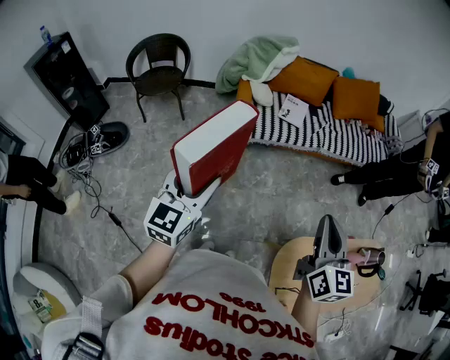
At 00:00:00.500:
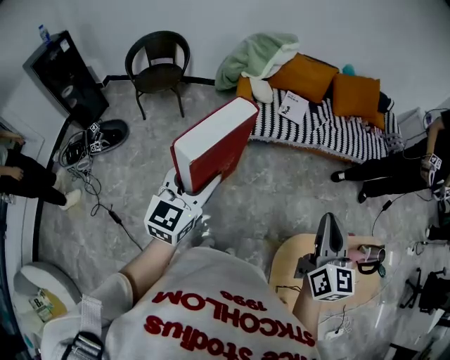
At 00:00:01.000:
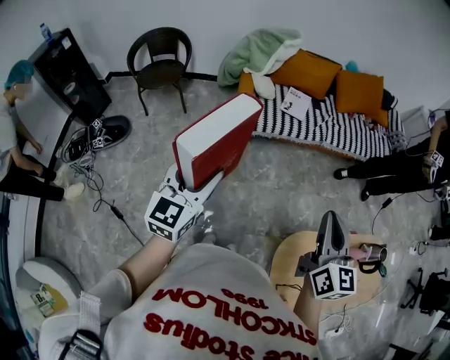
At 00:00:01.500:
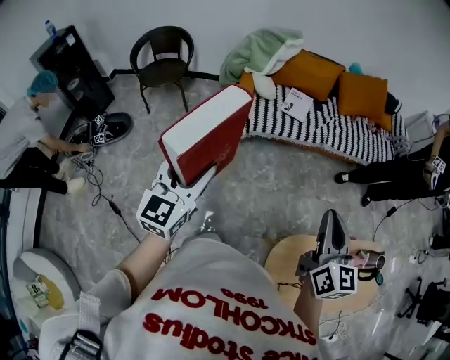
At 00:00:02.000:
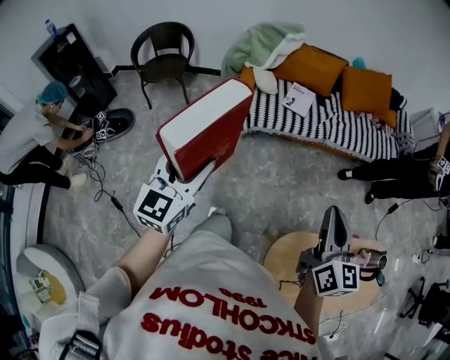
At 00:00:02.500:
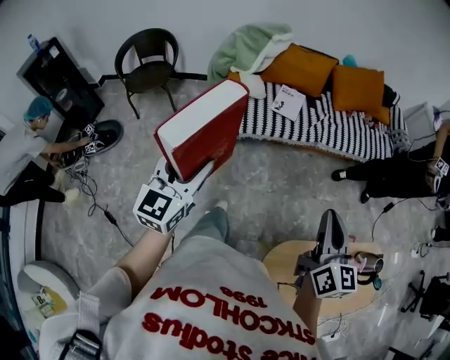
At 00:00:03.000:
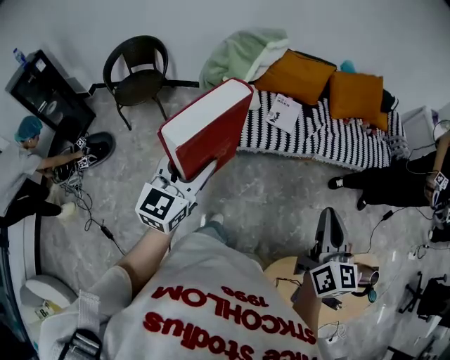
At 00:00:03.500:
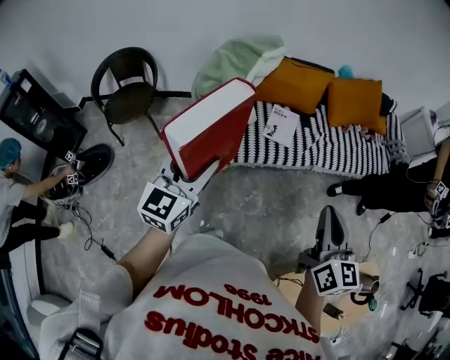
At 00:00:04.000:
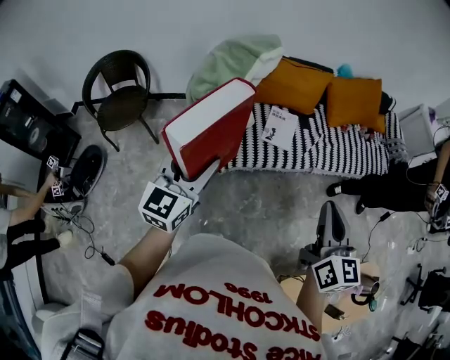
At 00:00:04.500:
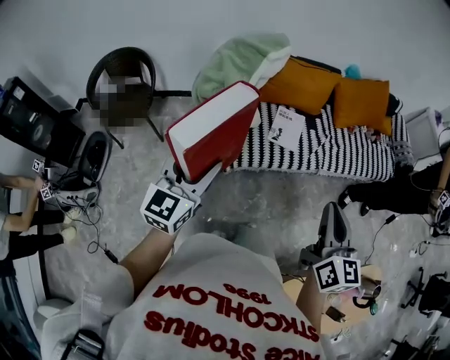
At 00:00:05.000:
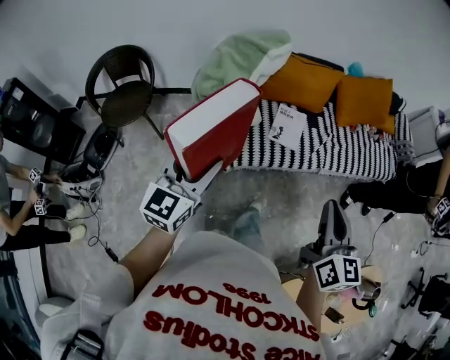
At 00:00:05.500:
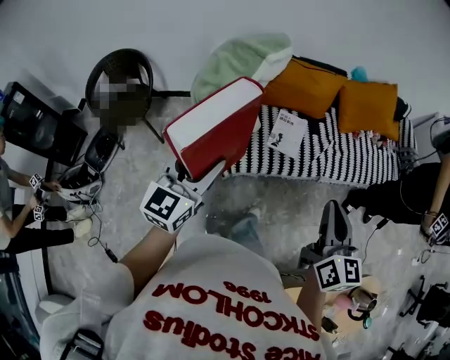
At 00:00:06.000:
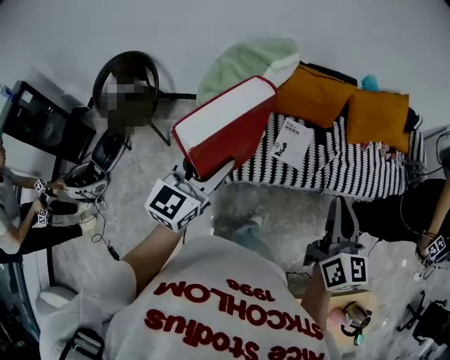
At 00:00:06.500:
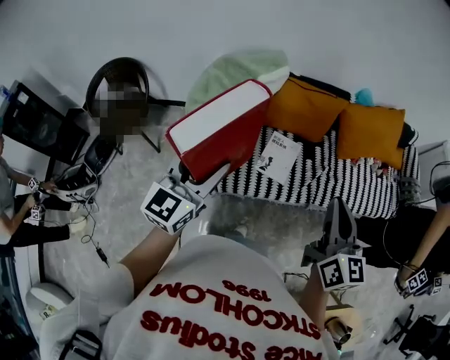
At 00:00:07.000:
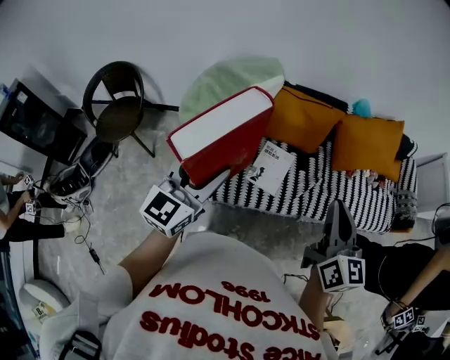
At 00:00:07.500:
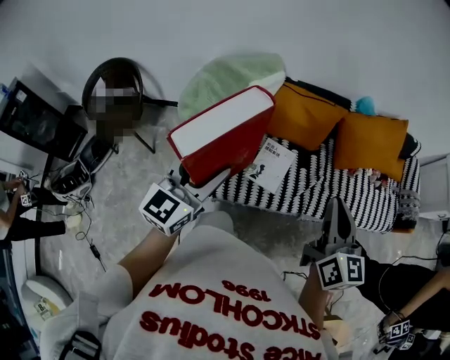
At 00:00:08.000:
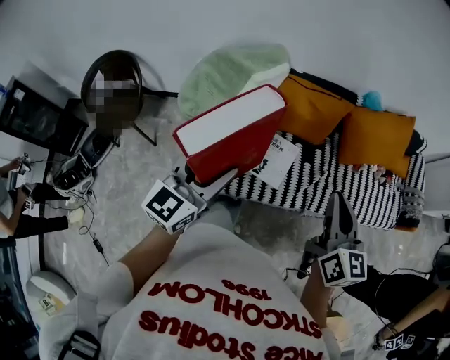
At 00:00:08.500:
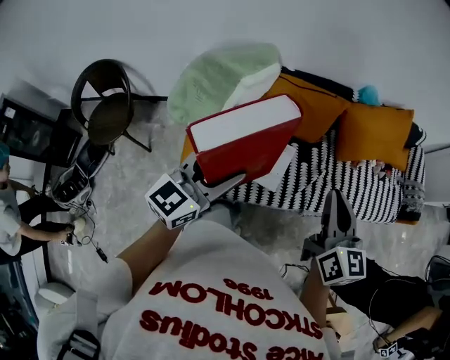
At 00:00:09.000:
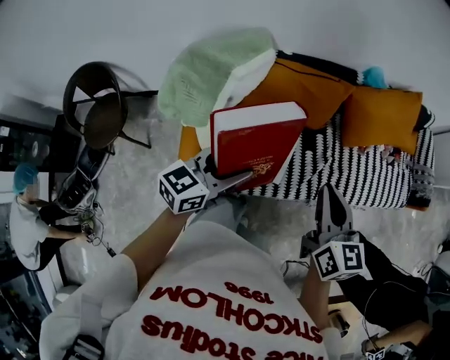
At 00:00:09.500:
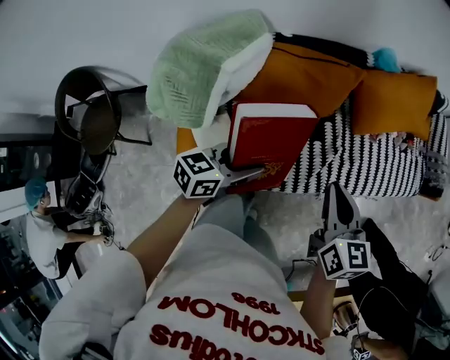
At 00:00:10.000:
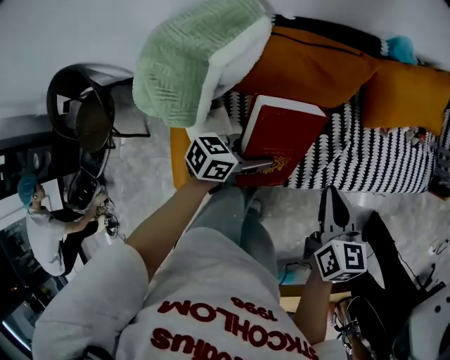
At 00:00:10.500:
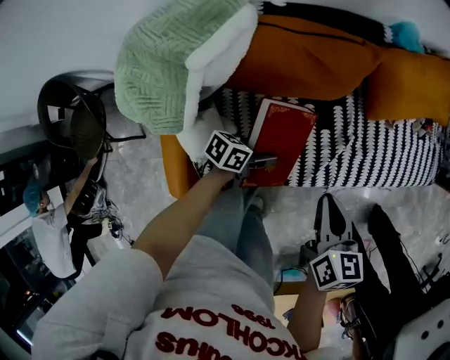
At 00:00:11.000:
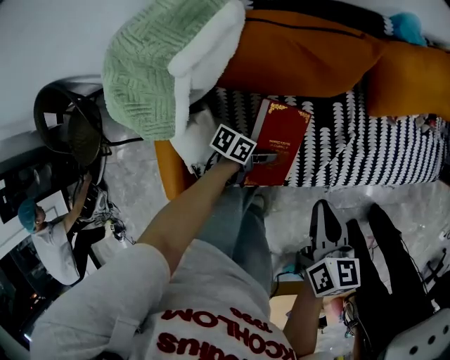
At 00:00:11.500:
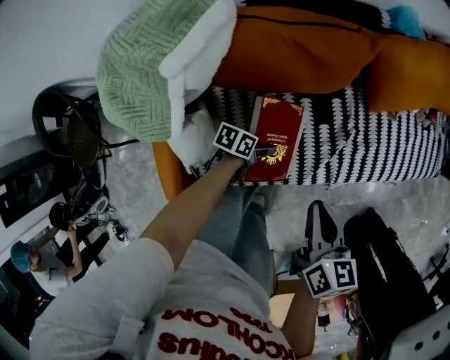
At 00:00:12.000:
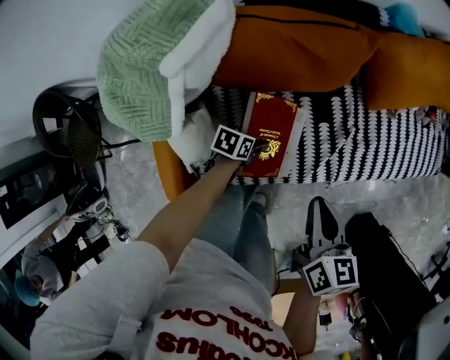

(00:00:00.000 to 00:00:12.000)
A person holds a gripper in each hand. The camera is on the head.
00:00:00.000 - 00:00:02.000: The grippers both shift to the right by about 5 cm.
00:00:02.000 - 00:00:04.000: The two grippers go about 40 cm forward.
00:00:04.000 - 00:00:06.000: The right gripper travels forward by roughly 20 cm, while the left gripper moves forward and to the right, about 15 cm.
00:00:06.000 - 00:00:08.000: The left gripper goes some 20 cm forward and to the right. Meanwhile the right gripper is displaced forward by roughly 20 cm.
00:00:08.000 - 00:00:10.000: Both grippers travel together downward, about 25 cm. The left gripper swivels about 60 degrees. The right gripper changes its angle by roughly 30 degrees.
00:00:10.000 - 00:00:12.000: The left gripper travels downward by about 25 cm, and turns by about 30 degrees, while the right gripper heads downward, covering some 5 cm.

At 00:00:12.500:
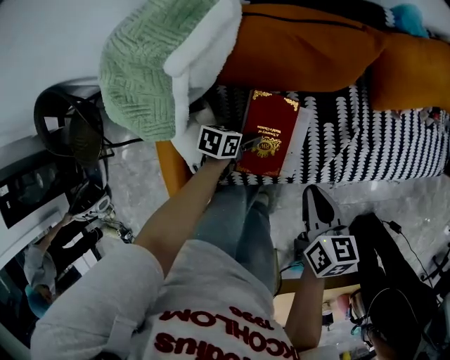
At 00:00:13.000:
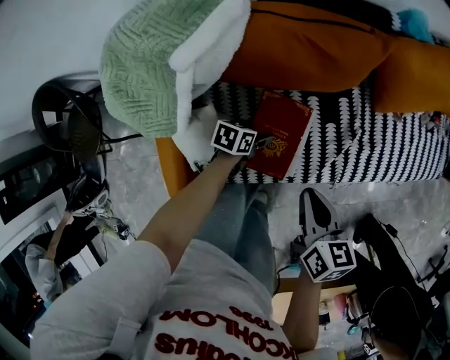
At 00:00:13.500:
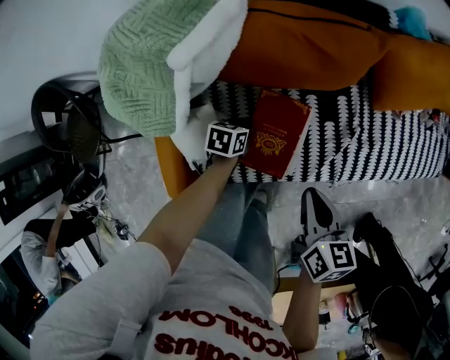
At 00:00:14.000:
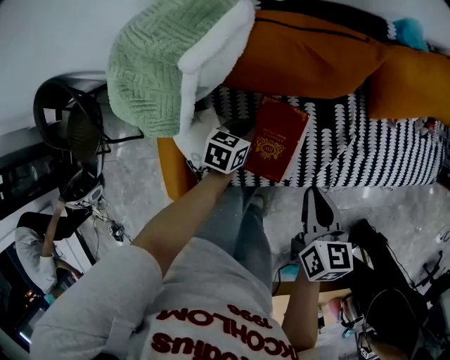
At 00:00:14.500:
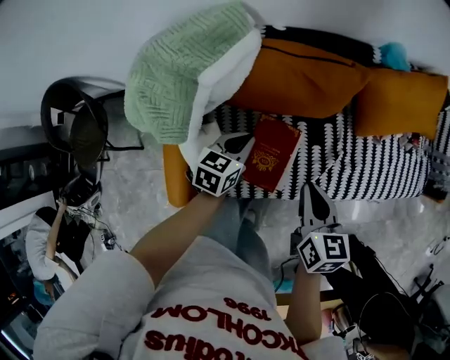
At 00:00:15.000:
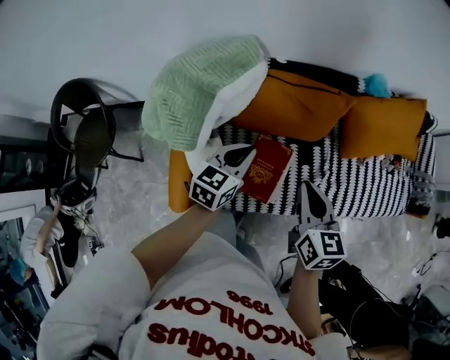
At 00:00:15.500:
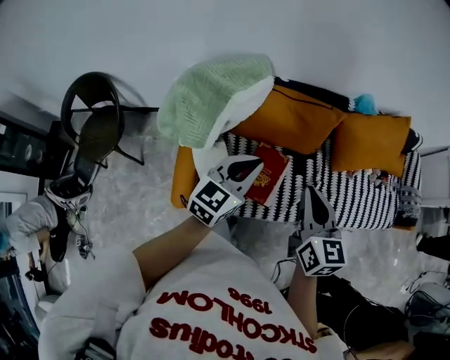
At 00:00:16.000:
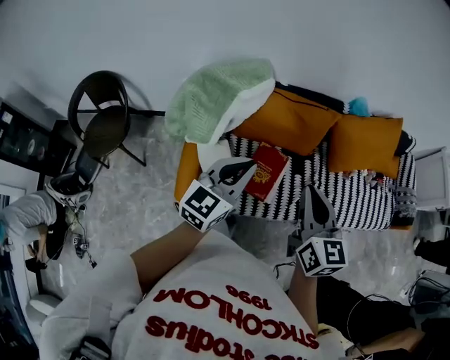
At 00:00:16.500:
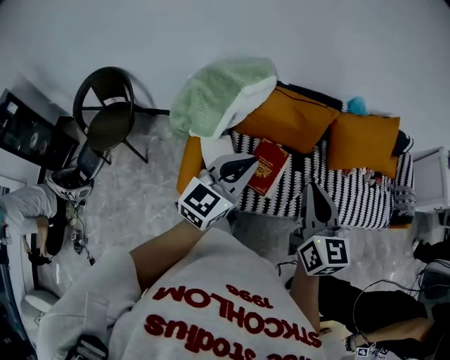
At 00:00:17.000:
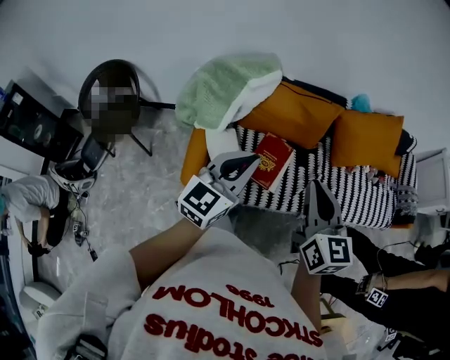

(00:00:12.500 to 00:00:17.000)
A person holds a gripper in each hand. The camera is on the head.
00:00:12.500 - 00:00:14.500: The left gripper moves upward, approximately 20 cm, turns by some 30 degrees, and closes its fingers; the right gripper heads upward, covering some 10 cm.
00:00:14.500 - 00:00:17.000: The two grippers go approximately 40 cm upward and backward. The right gripper turns by about 30 degrees. Meanwhile the left gripper angles its fingers upward, by some 30 degrees.

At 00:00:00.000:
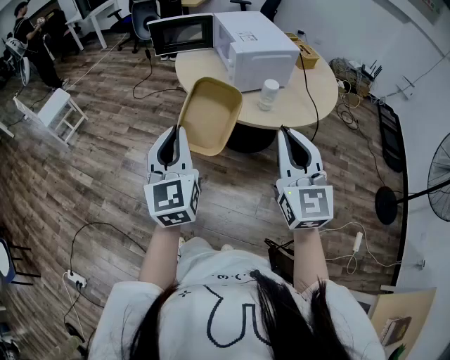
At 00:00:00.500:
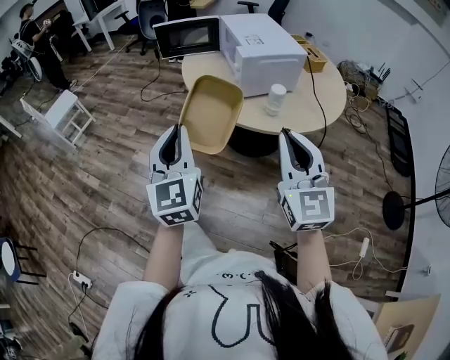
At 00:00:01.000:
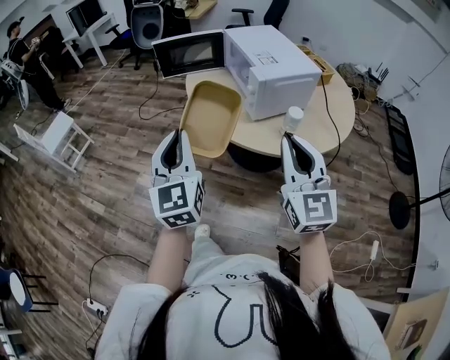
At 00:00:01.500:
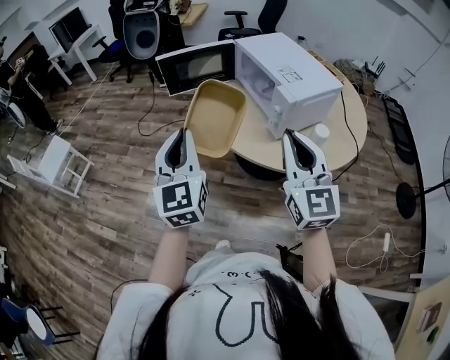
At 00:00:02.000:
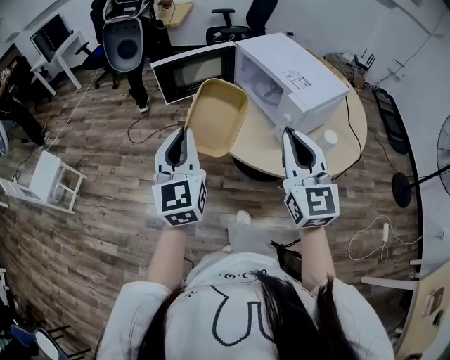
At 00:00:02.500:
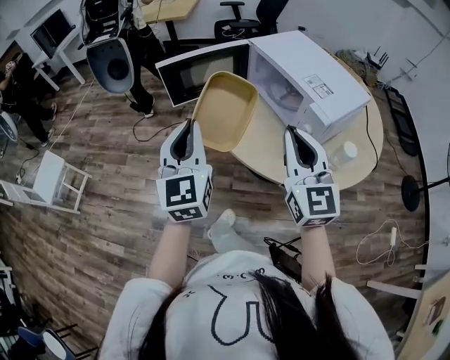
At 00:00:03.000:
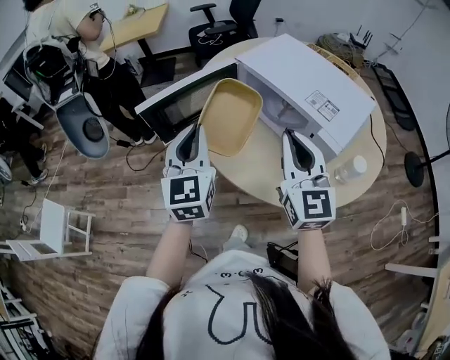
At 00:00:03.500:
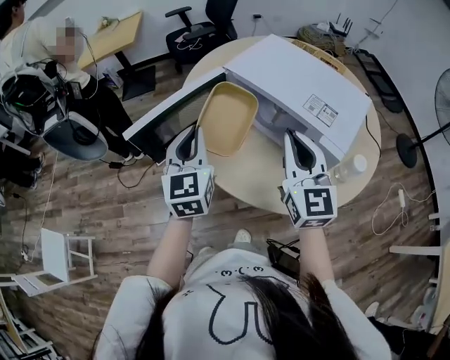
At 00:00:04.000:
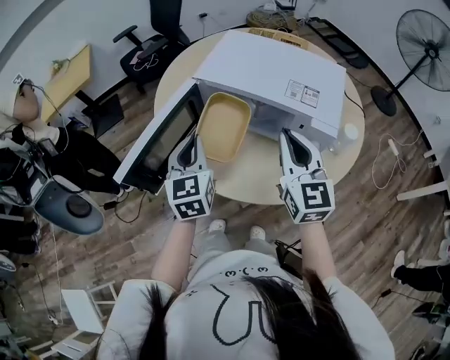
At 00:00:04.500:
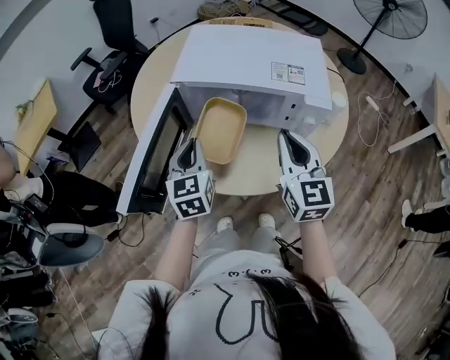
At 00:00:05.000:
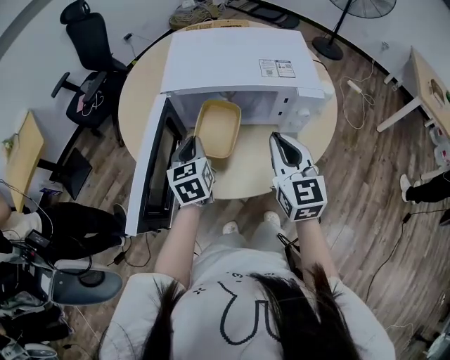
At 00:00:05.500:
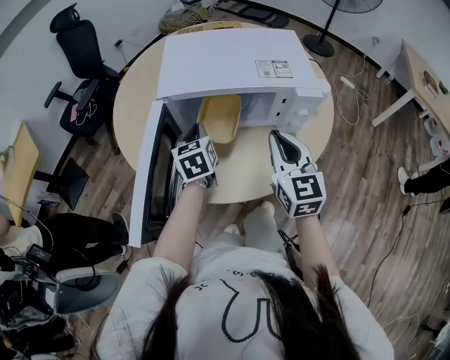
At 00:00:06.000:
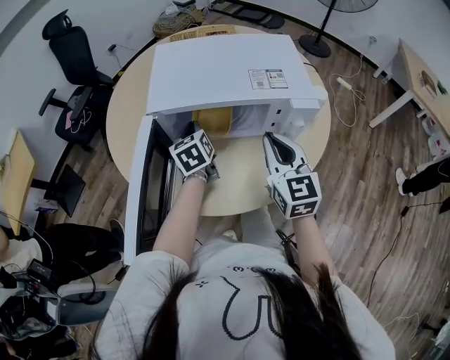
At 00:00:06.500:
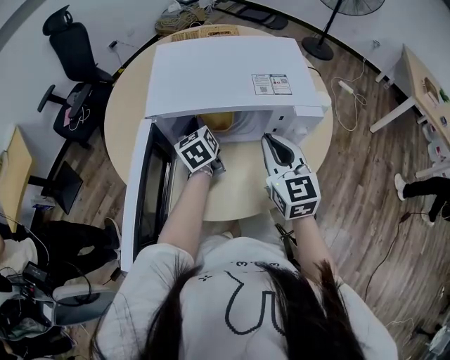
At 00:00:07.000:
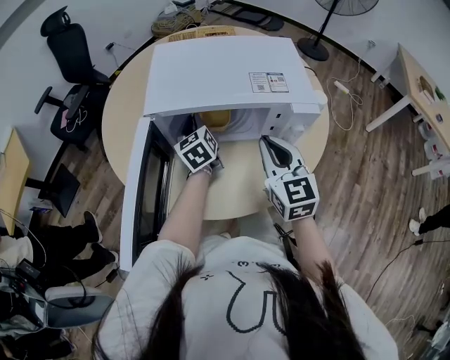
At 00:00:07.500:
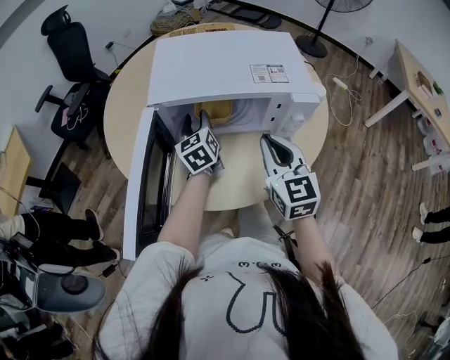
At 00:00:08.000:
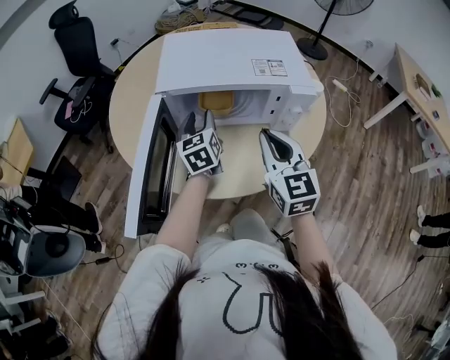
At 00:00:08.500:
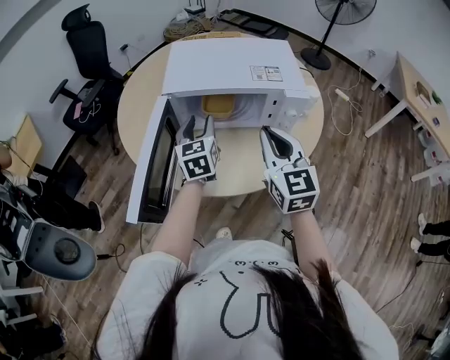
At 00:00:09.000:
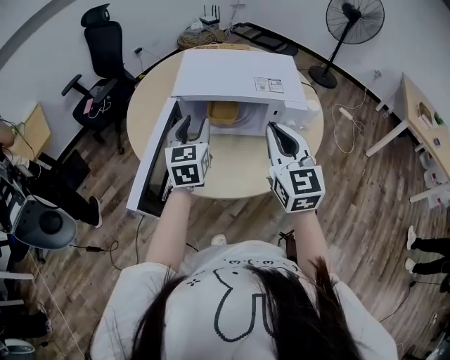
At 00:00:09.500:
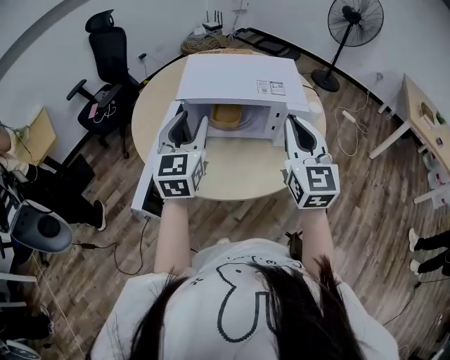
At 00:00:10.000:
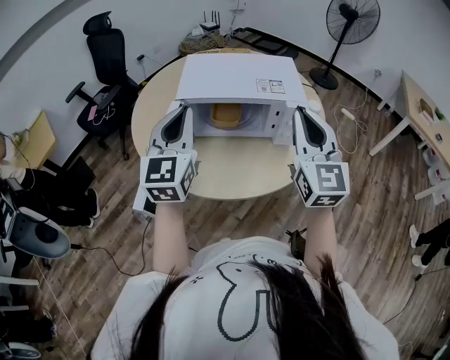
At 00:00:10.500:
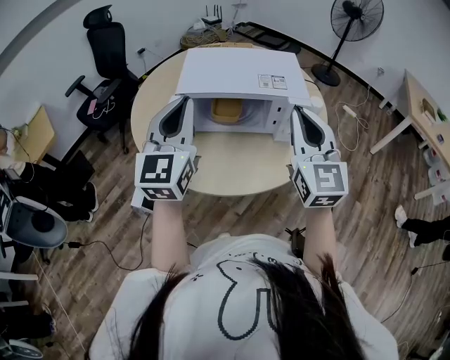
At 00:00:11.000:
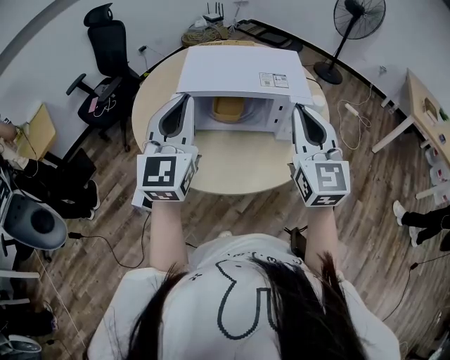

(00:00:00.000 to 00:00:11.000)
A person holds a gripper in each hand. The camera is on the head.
00:00:00.000 - 00:00:02.000: Both grippers move forward and to the left, about 40 cm.
00:00:02.000 - 00:00:03.500: Both grippers move forward, approximately 25 cm. The left gripper swivels approximately 20 degrees.
00:00:03.500 - 00:00:05.500: The left gripper ends up about 25 cm from where it was, and rotates approximately 40 degrees. Meanwhile the right gripper travels downward by some 10 cm, and swivels approximately 40 degrees.
00:00:05.500 - 00:00:07.500: The left gripper travels forward by approximately 5 cm, and opens its fingers.
00:00:07.500 - 00:00:09.000: The grippers both shift upward and backward by some 15 cm. The left gripper swivels roughly 20 degrees.
00:00:09.000 - 00:00:11.000: The right gripper shifts some 5 cm upward. Meanwhile the left gripper goes approximately 15 cm upward and backward, swivels some 30 degrees, and closes.
